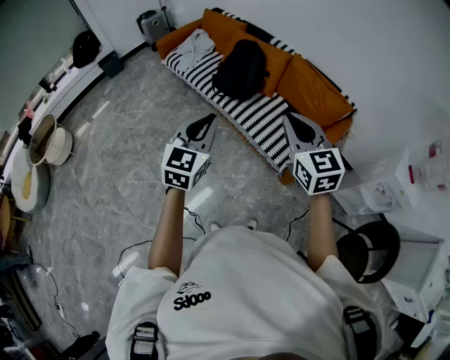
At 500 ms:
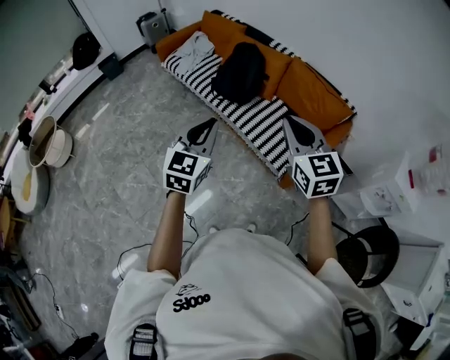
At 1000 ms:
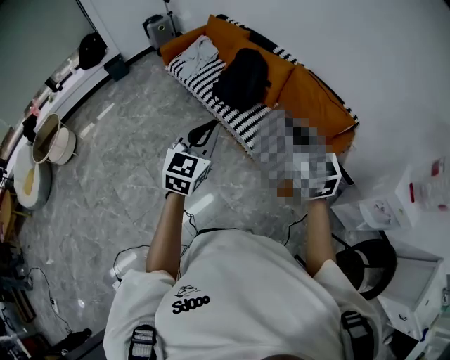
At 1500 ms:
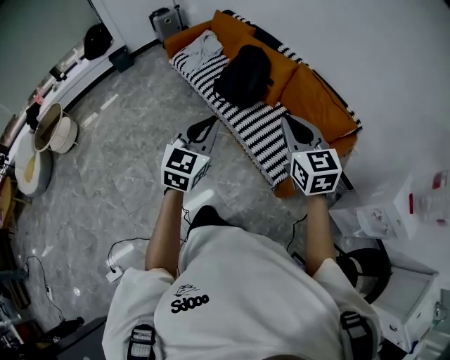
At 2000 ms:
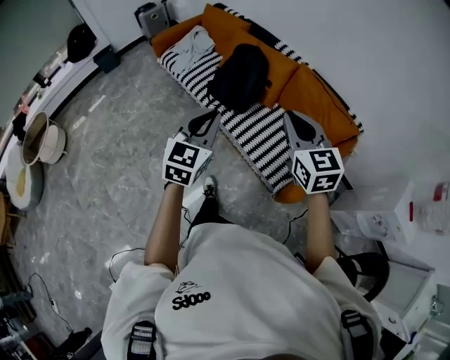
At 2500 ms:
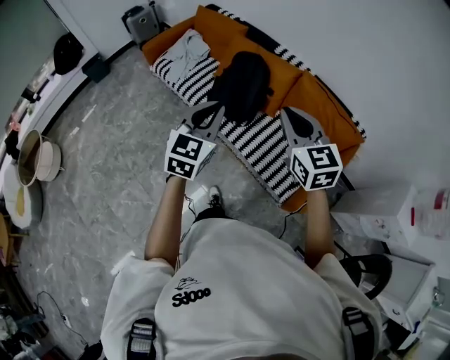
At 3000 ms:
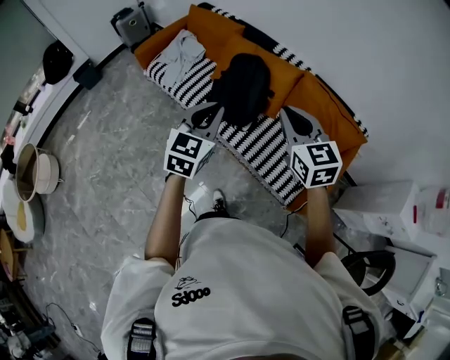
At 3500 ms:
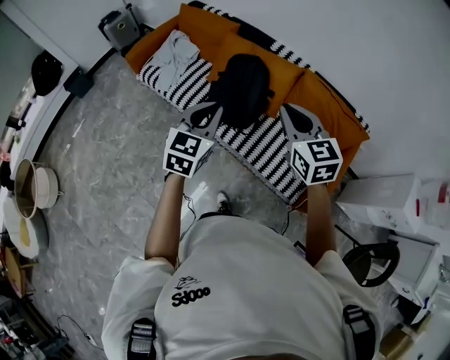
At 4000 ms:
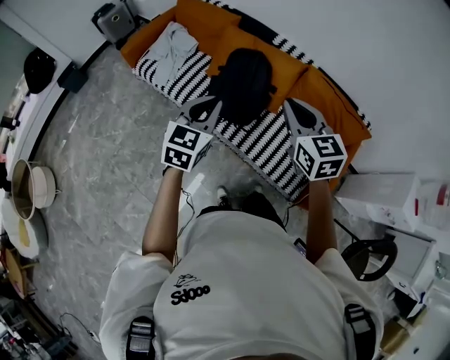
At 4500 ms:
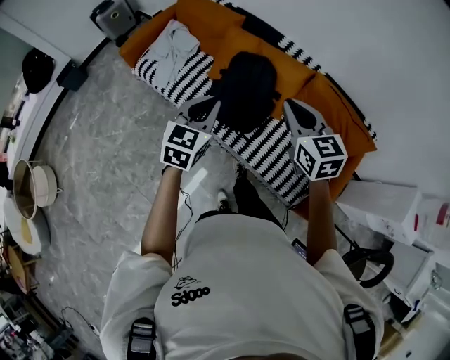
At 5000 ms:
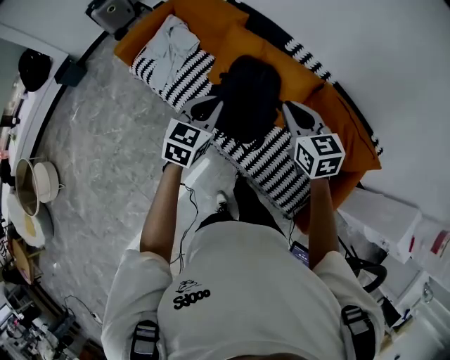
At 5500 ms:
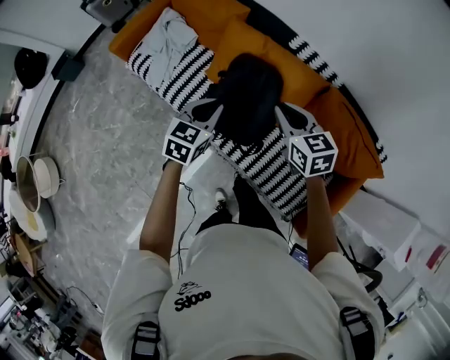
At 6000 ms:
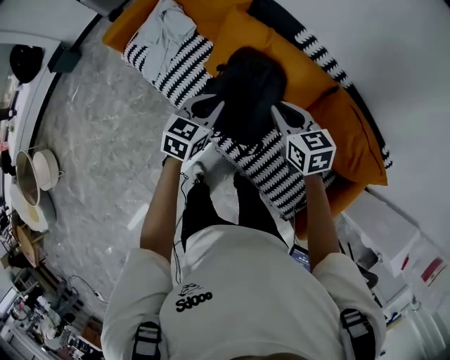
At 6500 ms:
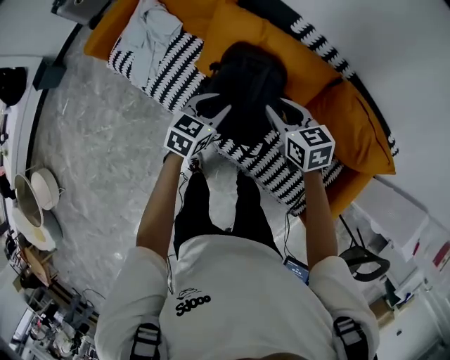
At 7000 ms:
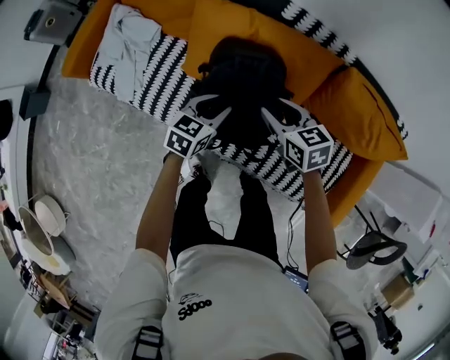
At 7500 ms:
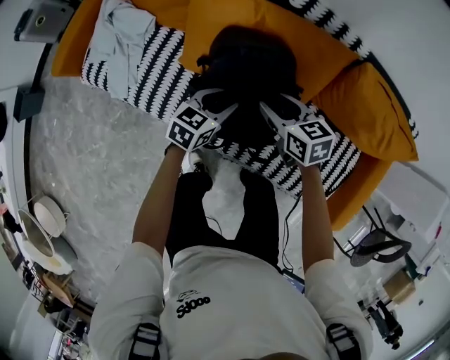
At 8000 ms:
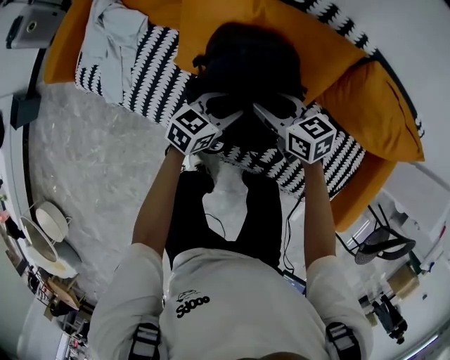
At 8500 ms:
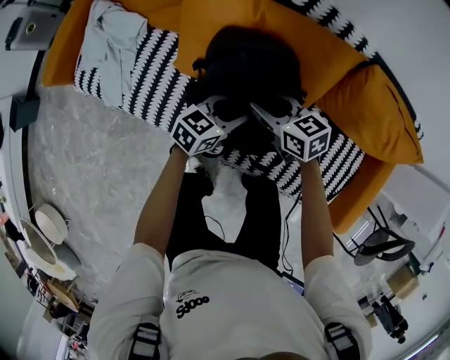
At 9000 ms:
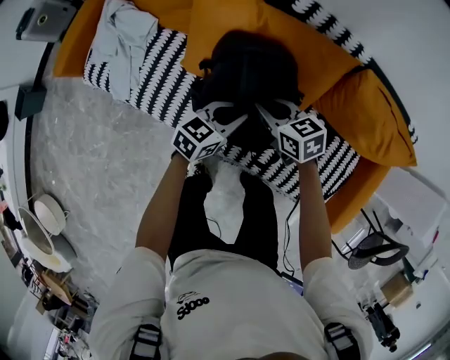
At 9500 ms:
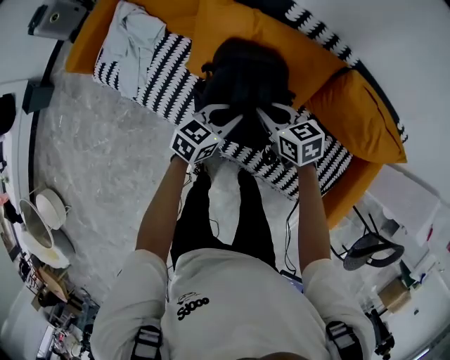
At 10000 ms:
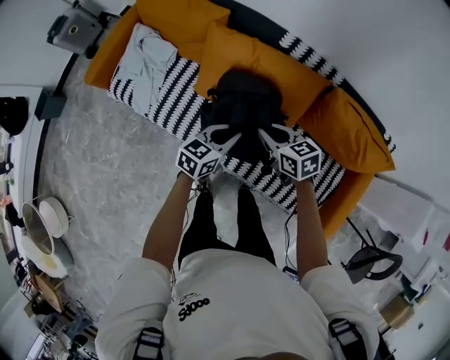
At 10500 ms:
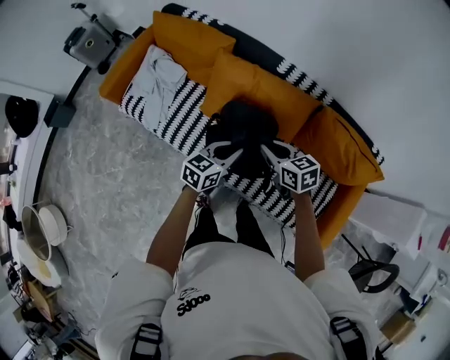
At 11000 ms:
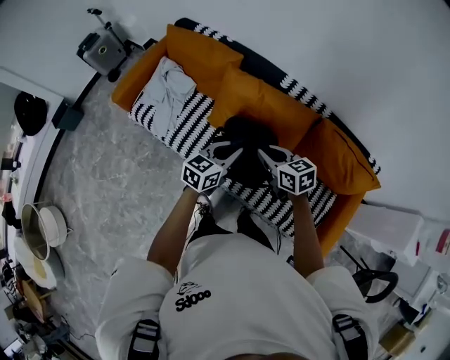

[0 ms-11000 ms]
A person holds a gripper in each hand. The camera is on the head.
0 ms to 2000 ms: Both grippers travel together forward, about 20 cm.
2000 ms to 3500 ms: Both grippers travel together forward and to the left, roughly 30 cm.
3500 ms to 5500 ms: The two grippers go roughly 40 cm forward and downward. The right gripper rotates some 20 degrees.
5500 ms to 7500 ms: The grippers both shift downward by some 30 cm. The left gripper swivels some 30 degrees, and opens its fingers. Meanwhile the right gripper opens its fingers.
7500 ms to 9000 ms: The left gripper closes up. The right gripper closes its fingers.
9000 ms to 11000 ms: The grippers both shift upward by about 30 cm.

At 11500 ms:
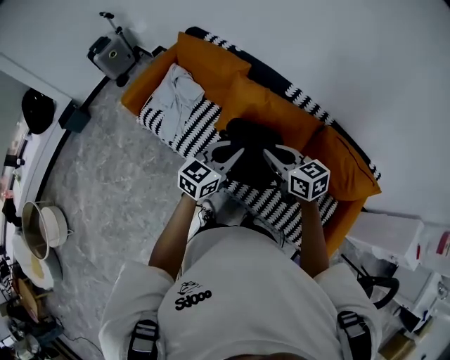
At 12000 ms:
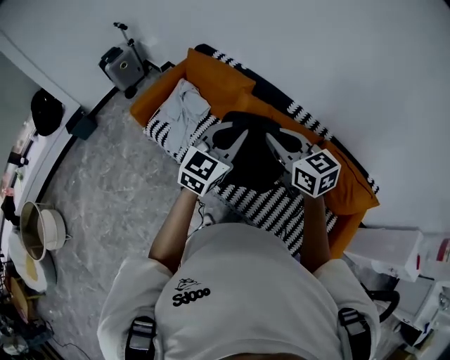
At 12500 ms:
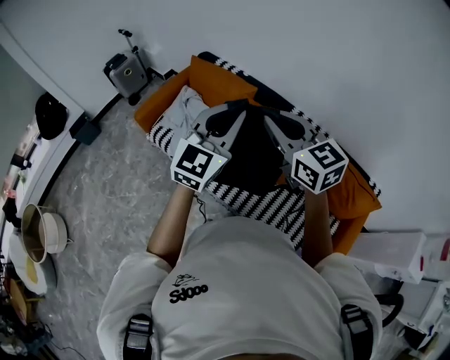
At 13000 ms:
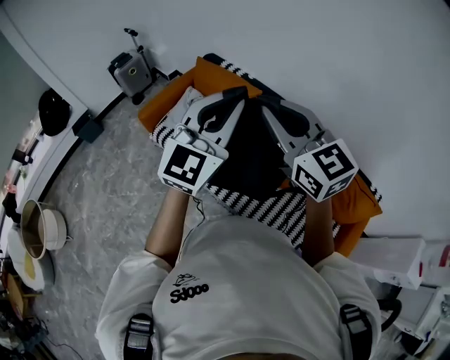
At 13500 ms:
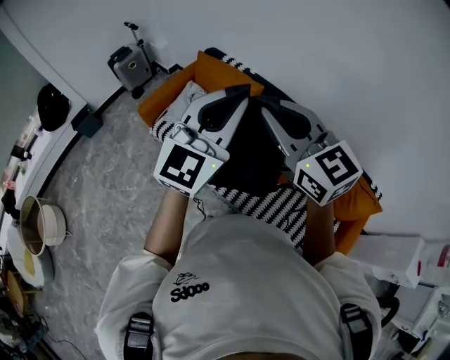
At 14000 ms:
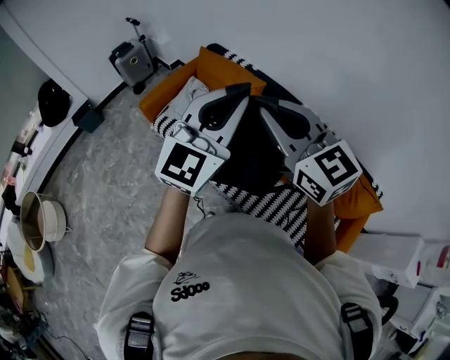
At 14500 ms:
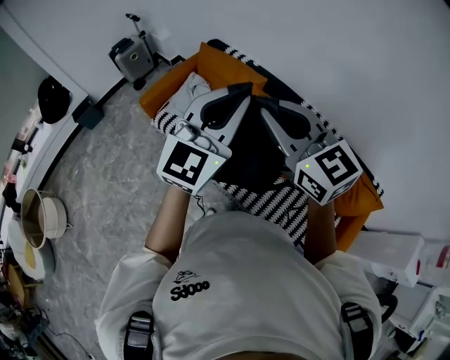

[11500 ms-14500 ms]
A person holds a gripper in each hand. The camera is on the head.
11500 ms to 13000 ms: Both grippers move upward, roughly 30 cm. The left gripper turns by approximately 40 degrees, while the right gripper swivels some 40 degrees.
13000 ms to 14500 ms: There are only small adjustments of the grippers.

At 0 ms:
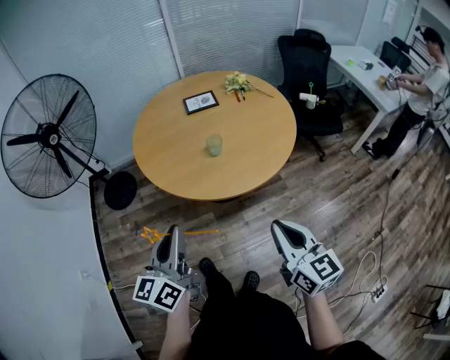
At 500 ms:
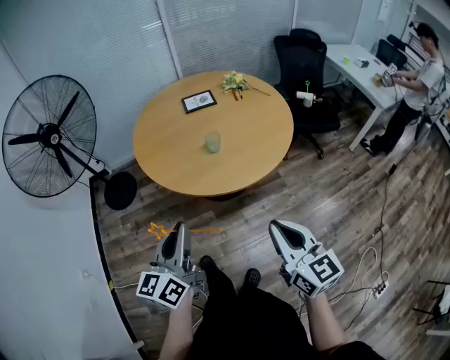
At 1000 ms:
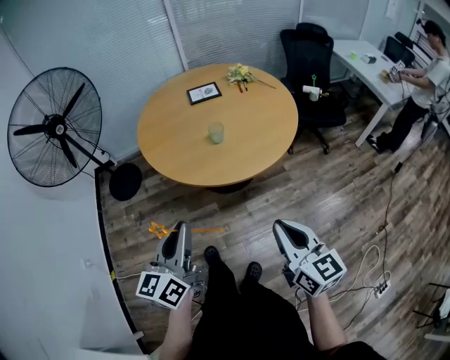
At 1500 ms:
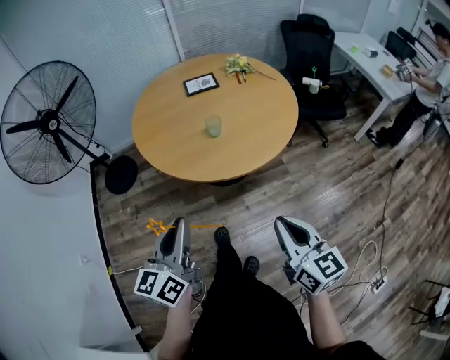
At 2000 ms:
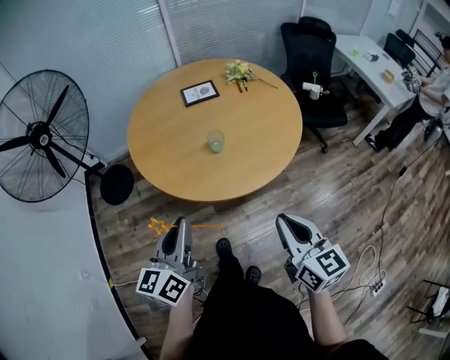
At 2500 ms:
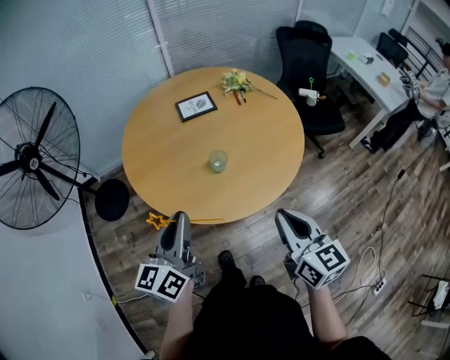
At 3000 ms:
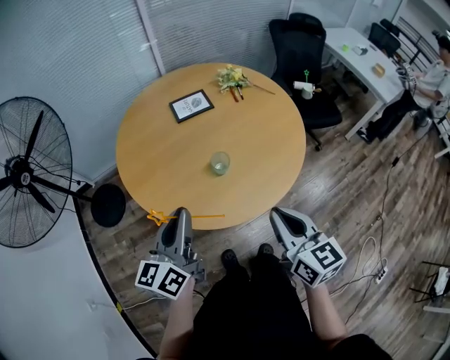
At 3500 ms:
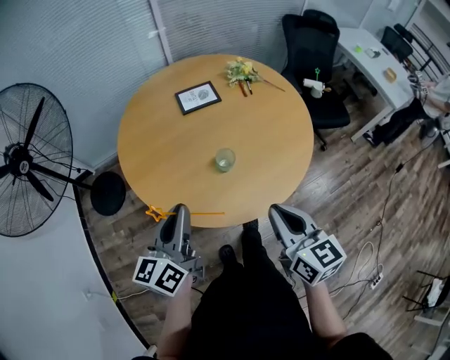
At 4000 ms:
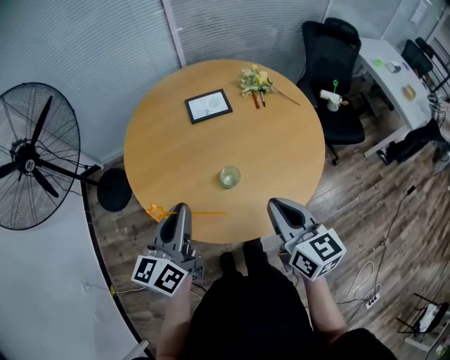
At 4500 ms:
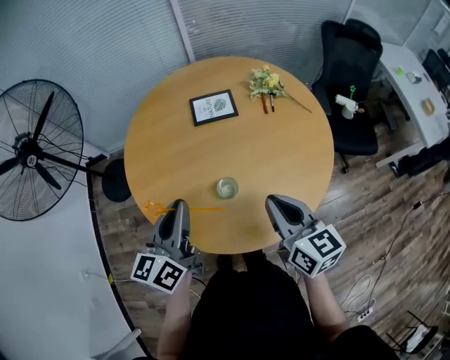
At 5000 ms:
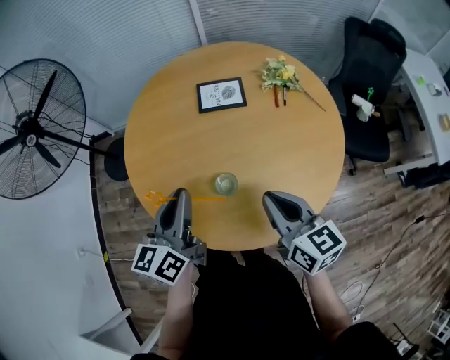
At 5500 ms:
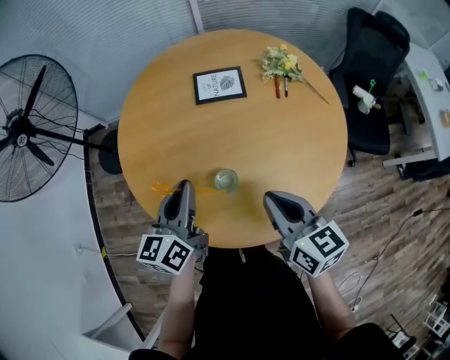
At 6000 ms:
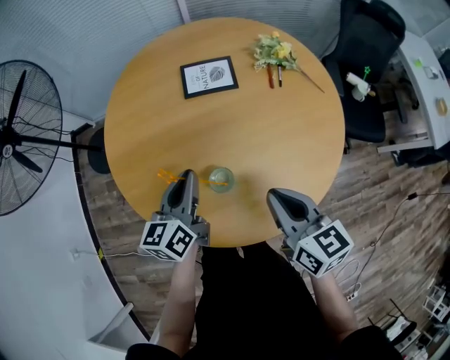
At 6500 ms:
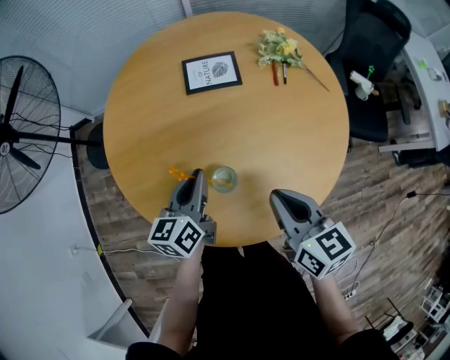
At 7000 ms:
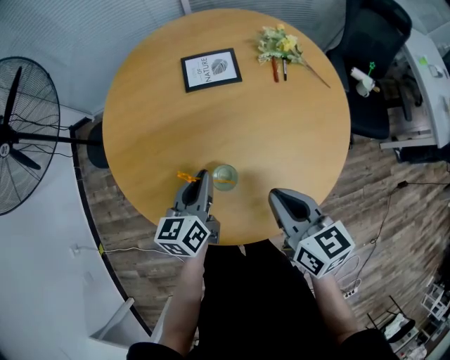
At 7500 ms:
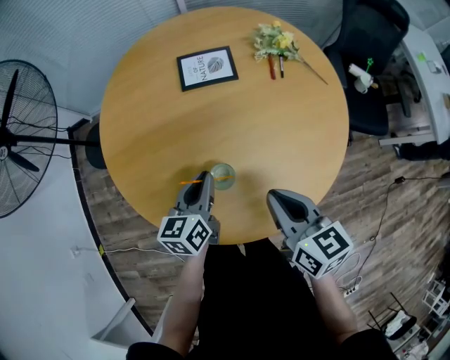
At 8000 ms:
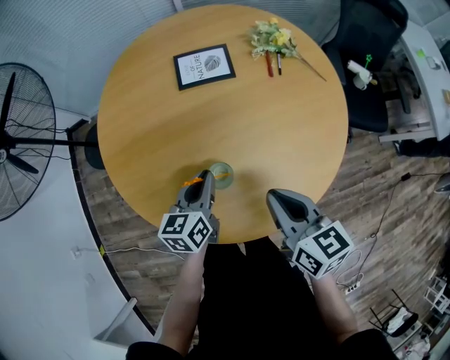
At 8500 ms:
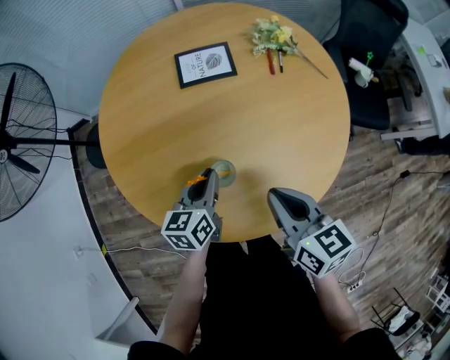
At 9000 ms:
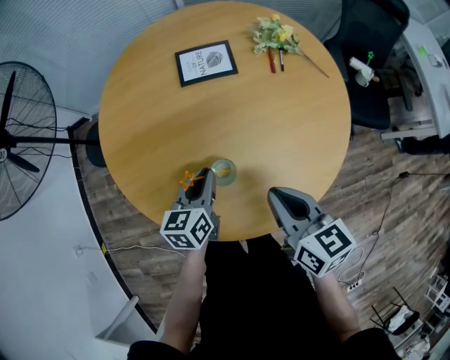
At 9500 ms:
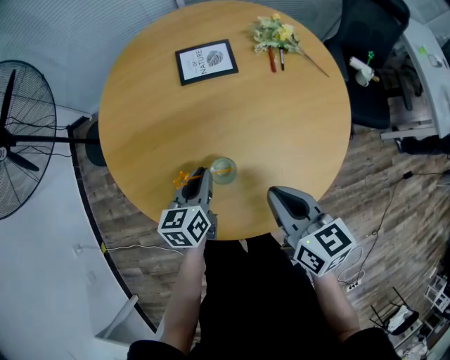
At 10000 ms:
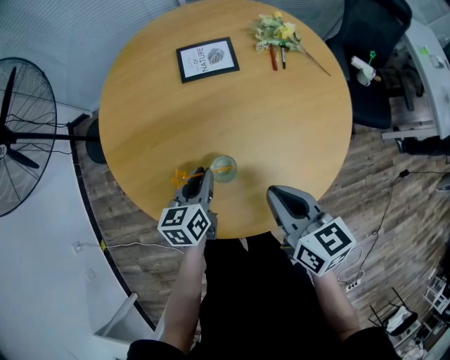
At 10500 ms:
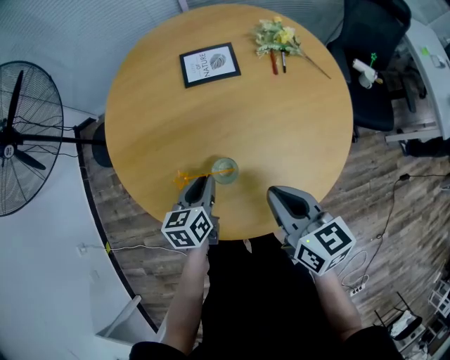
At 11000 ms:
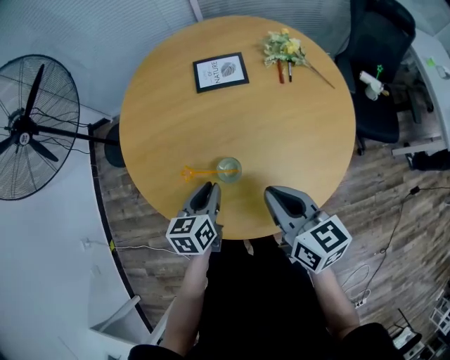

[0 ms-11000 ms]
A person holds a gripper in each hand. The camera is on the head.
0 ms to 2000 ms: Both grippers travel together forward, roughly 5 cm.
2000 ms to 3500 ms: Both grippers move forward, some 20 cm.
3500 ms to 5500 ms: The right gripper heads forward, covering approximately 20 cm, and changes its angle by some 20 degrees. Meanwhile the left gripper shifts about 20 cm forward, to the right and downward.
5500 ms to 7500 ms: The left gripper shifts about 10 cm downward.
7500 ms to 9000 ms: The grippers stay close to where they were, moving slightly.
9000 ms to 11000 ms: The left gripper heads backward, covering approximately 5 cm.

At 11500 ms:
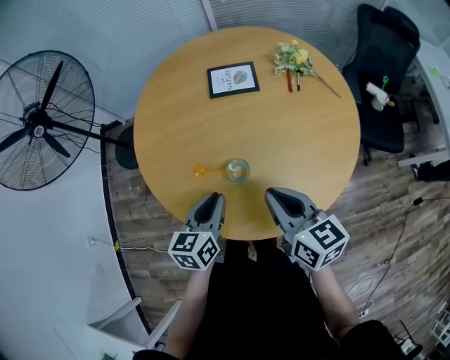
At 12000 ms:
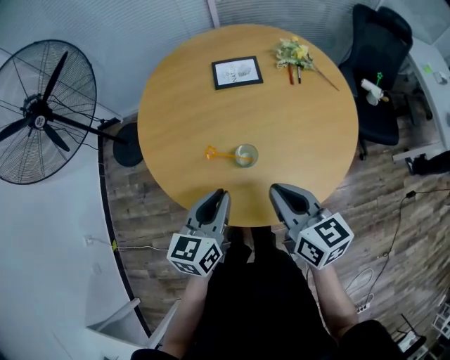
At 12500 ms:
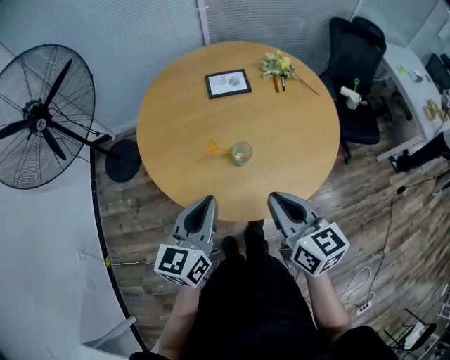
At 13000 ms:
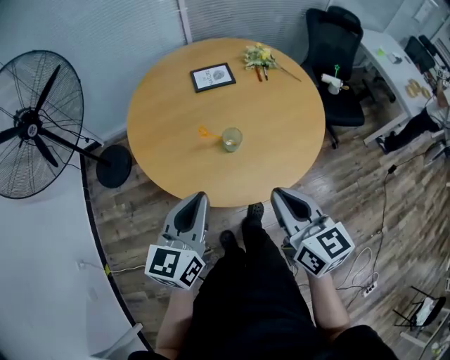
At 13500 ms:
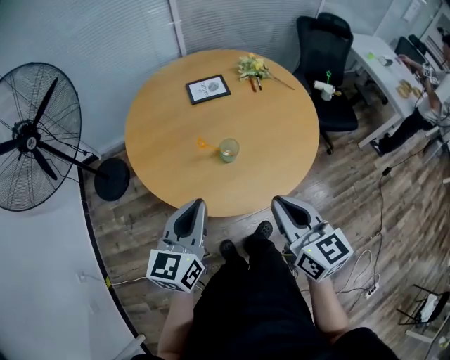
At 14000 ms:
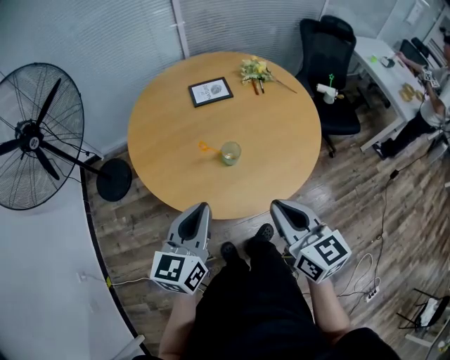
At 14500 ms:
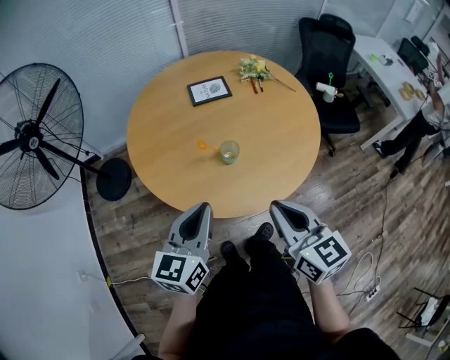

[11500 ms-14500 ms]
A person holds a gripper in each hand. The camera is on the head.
11500 ms to 13000 ms: The left gripper moves upward, backward and to the left, some 20 cm, and swivels approximately 20 degrees. The right gripper is displaced backward and upward by about 20 cm.
13000 ms to 14500 ms: Both grippers stay about where they are.
